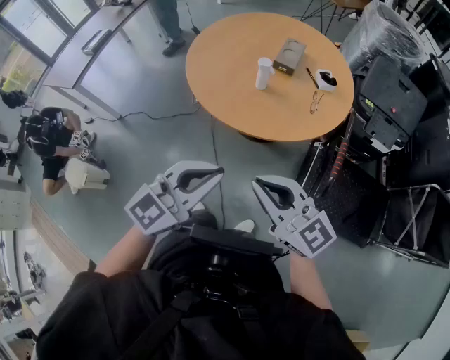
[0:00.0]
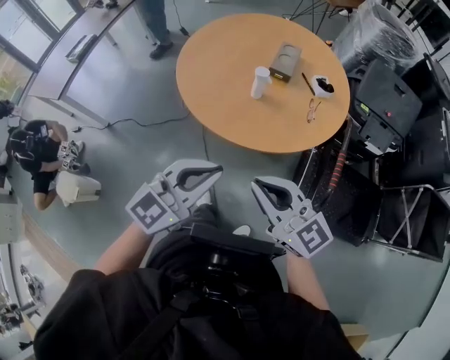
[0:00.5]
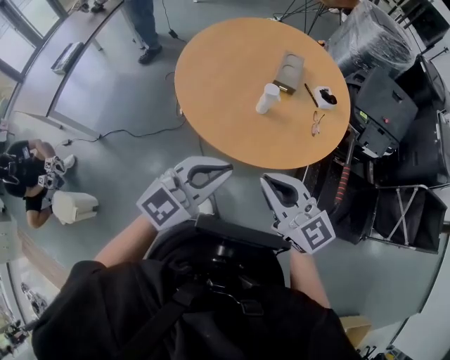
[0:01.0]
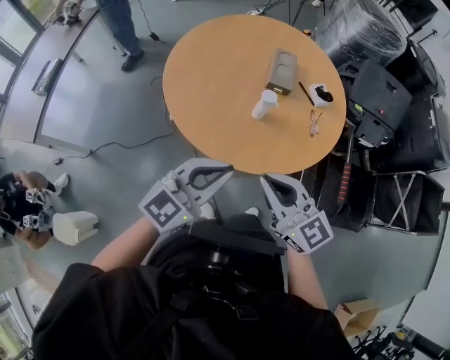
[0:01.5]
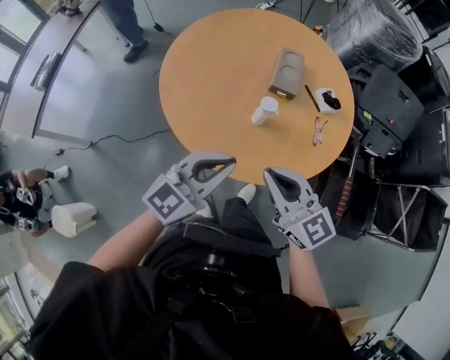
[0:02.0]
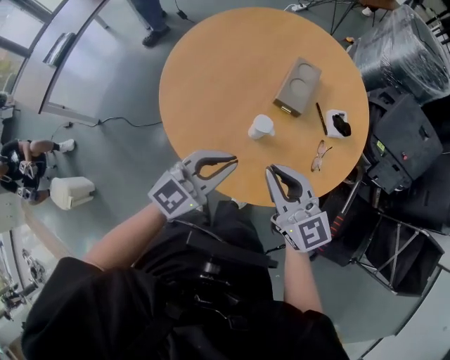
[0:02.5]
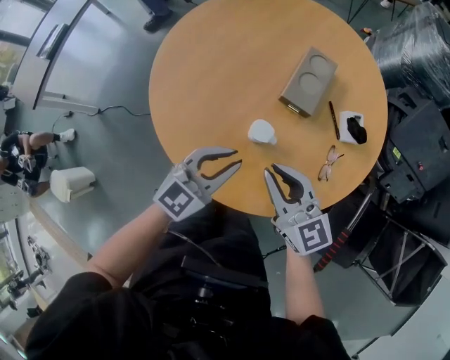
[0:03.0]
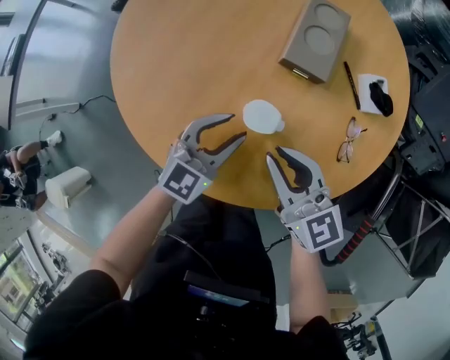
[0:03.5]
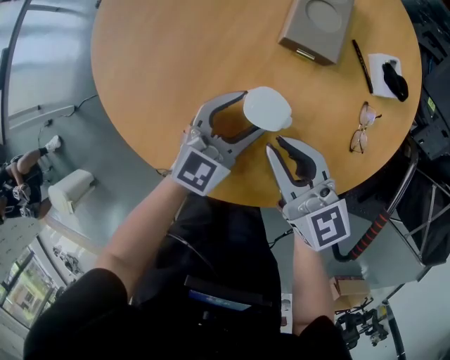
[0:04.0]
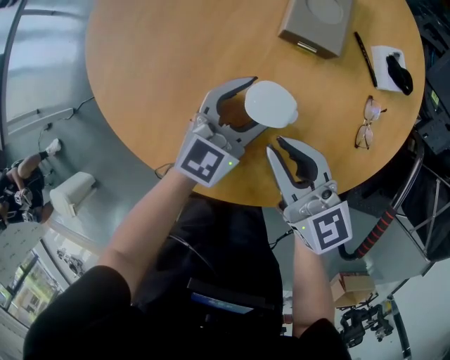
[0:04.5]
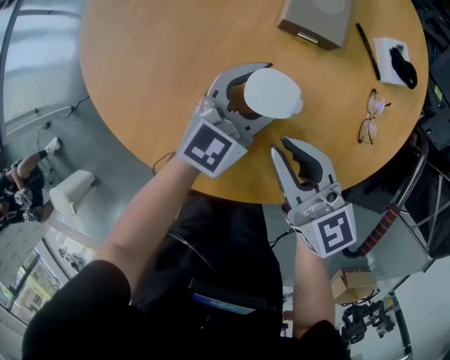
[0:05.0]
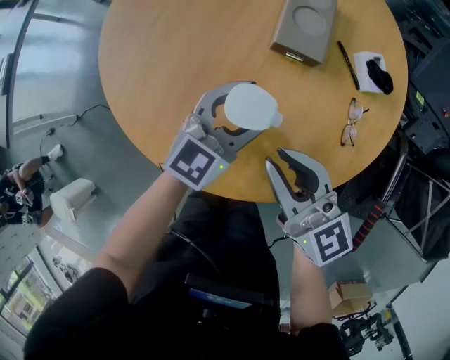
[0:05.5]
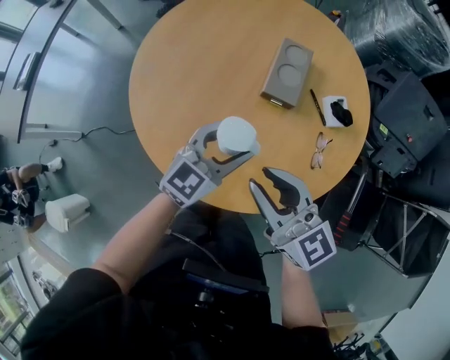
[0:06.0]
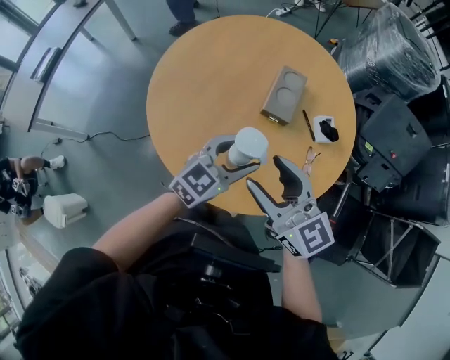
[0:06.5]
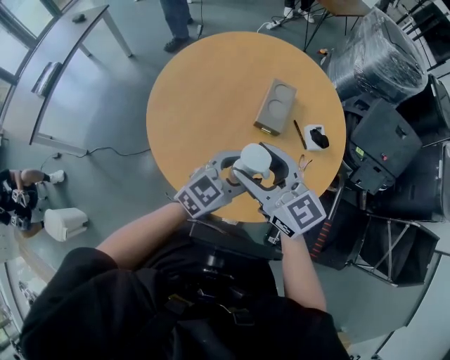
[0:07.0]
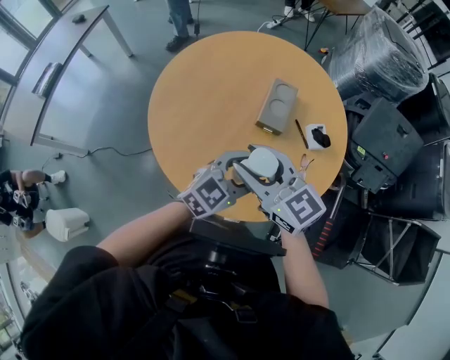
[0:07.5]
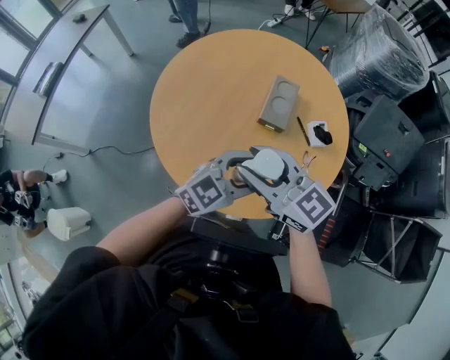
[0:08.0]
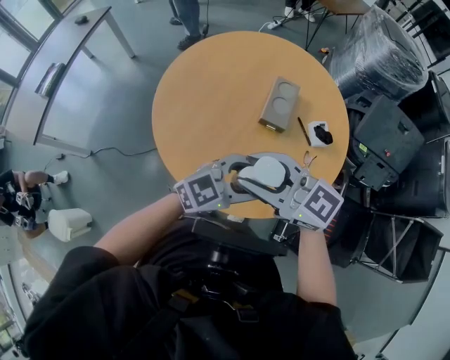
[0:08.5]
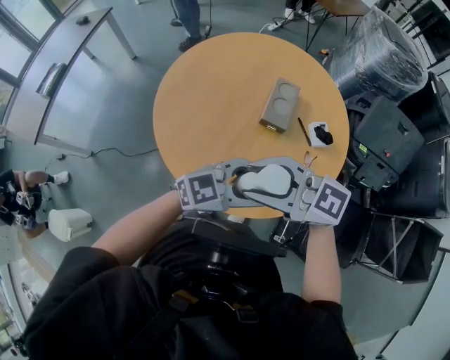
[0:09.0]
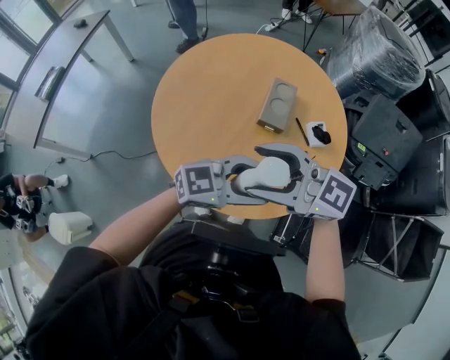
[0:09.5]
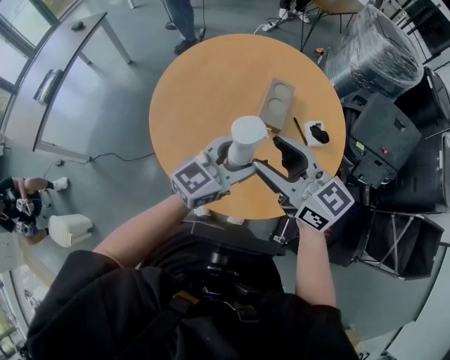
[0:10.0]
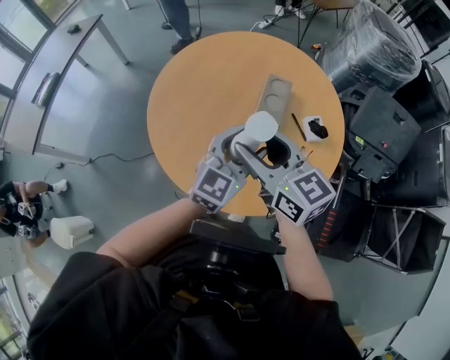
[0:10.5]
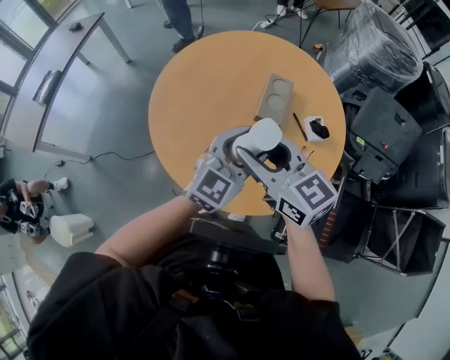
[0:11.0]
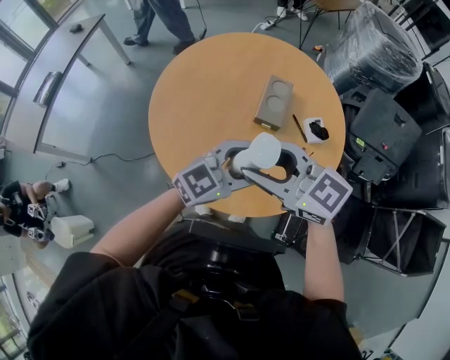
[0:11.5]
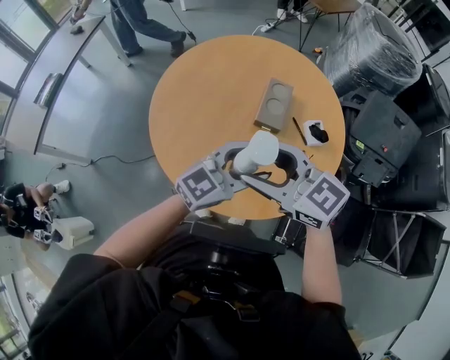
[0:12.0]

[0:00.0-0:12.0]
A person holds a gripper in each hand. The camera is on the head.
0:00.0 to 0:02.0: Both grippers are carried forward, approximately 40 cm.
0:02.0 to 0:04.0: Both grippers move downward and forward, about 50 cm. The left gripper opens.
0:04.0 to 0:06.0: The grippers both shift upward by approximately 25 cm.
0:06.0 to 0:08.0: The left gripper moves upward and backward, about 15 cm, while the right gripper travels upward and to the left by about 15 cm, and opens, then closes again.
0:08.0 to 0:10.0: The left gripper is displaced upward by about 5 cm, while the right gripper moves roughly 5 cm, and opens.

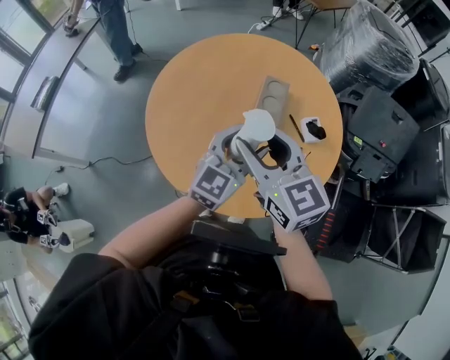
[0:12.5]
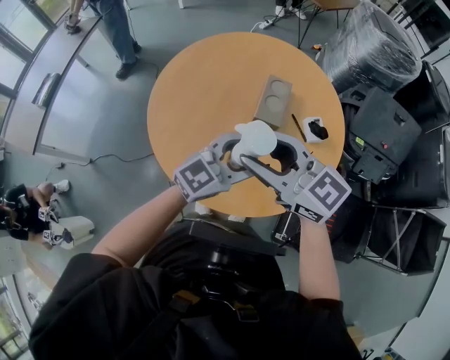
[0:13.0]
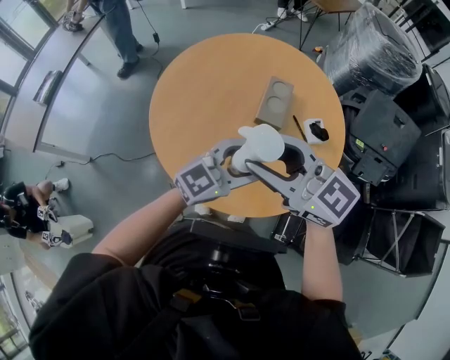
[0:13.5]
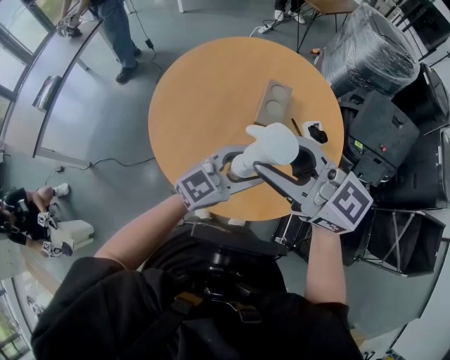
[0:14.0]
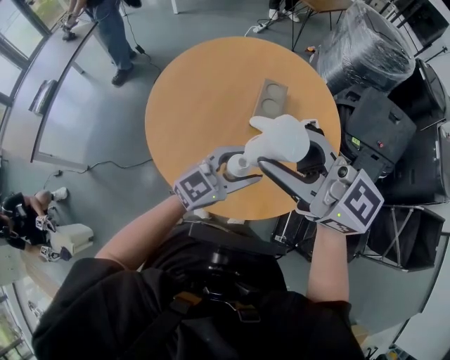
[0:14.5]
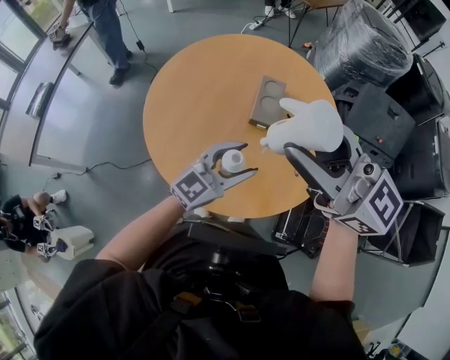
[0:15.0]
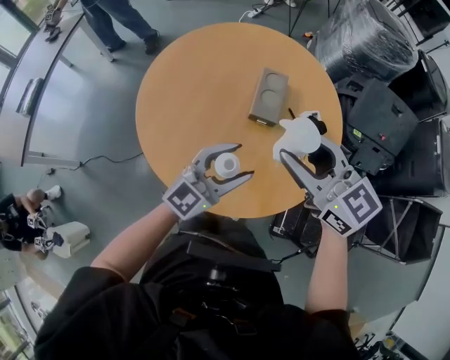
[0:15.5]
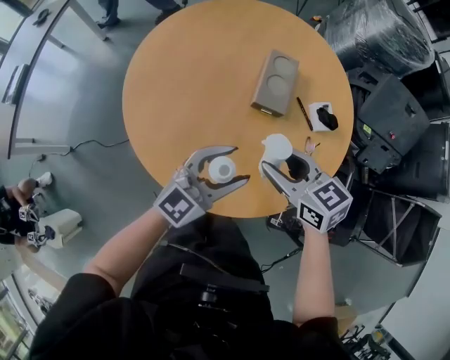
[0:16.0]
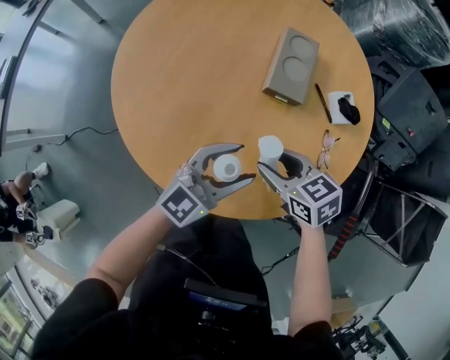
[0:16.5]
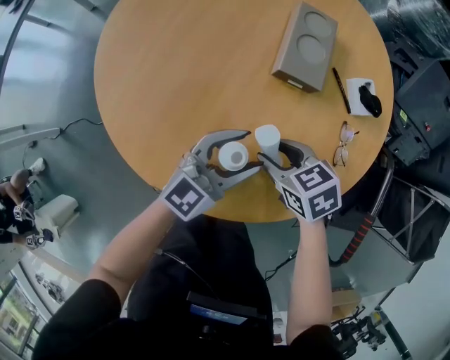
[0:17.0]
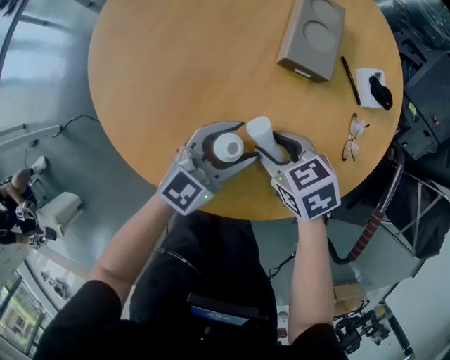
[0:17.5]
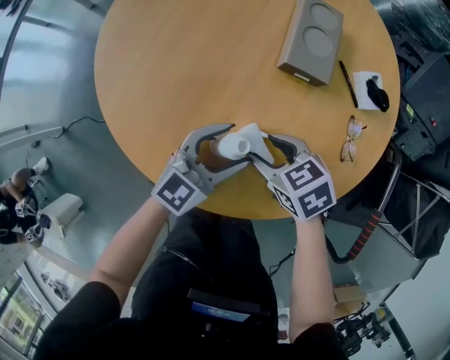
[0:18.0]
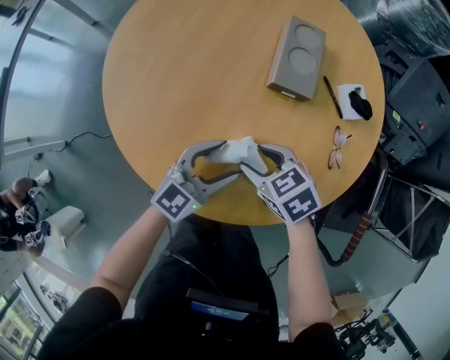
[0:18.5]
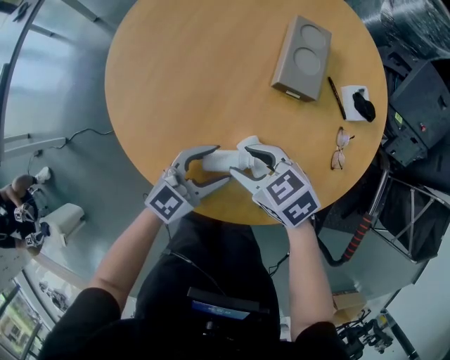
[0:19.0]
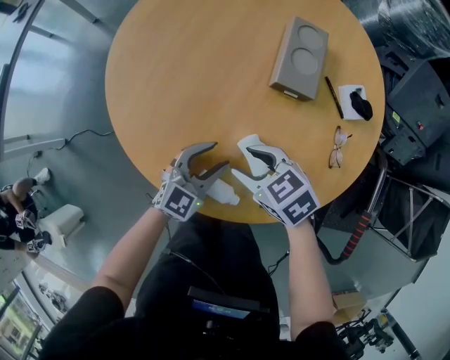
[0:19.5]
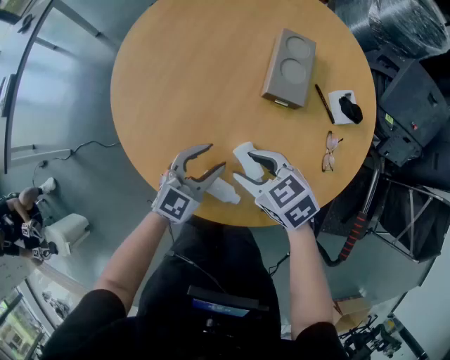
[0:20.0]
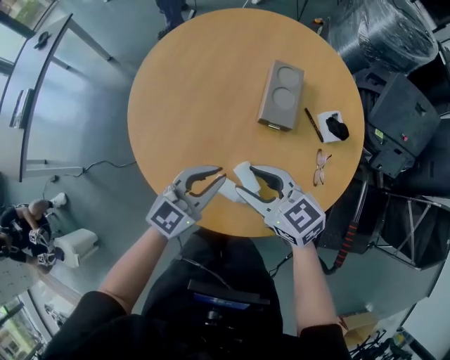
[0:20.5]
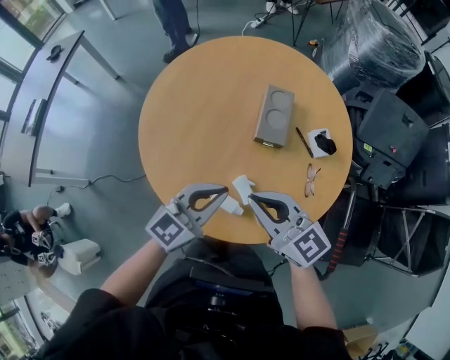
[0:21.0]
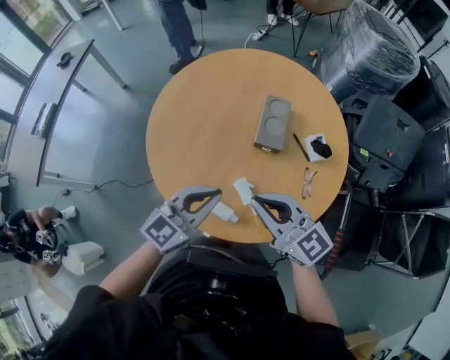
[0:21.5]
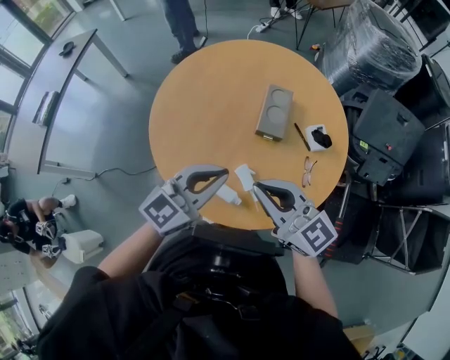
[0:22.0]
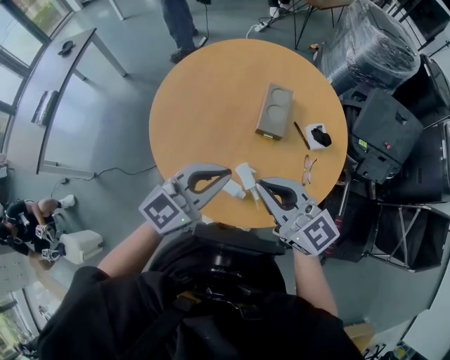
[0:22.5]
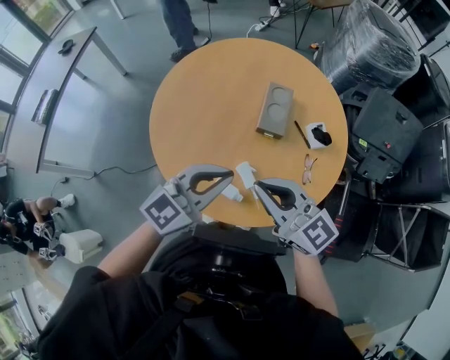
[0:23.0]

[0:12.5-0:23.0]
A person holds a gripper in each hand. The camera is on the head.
0:12.5 to 0:14.5: The left gripper ends up about 5 cm from where it was, and swivels approximately 20 degrees. Meanwhile the right gripper shifts about 10 cm upward, and rotates roughly 30 degrees.
0:14.5 to 0:16.5: The right gripper is displaced downward by roughly 50 cm, and tips its fingers downward by some 50 degrees. The left gripper travels downward by about 25 cm.
0:16.5 to 0:19.0: The left gripper goes approximately 15 cm downward and to the left; the right gripper goes roughly 10 cm to the left and downward.
0:19.0 to 0:21.0: The grippers both shift upward by about 30 cm. The right gripper tips its fingers upward by roughly 40 degrees, and closes; the left gripper closes.
0:21.0 to 0:23.0: The two grippers go roughly 10 cm upward and backward.

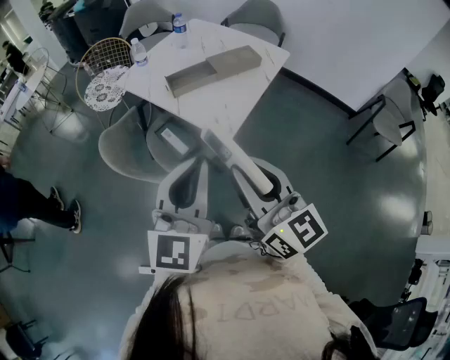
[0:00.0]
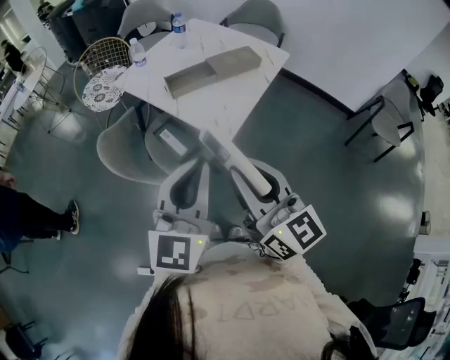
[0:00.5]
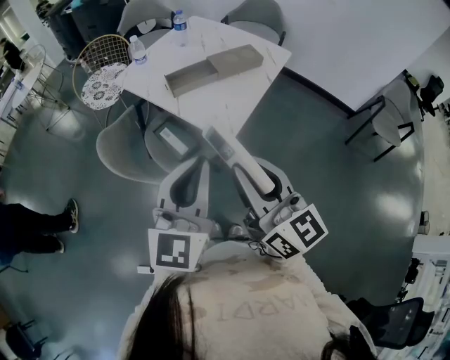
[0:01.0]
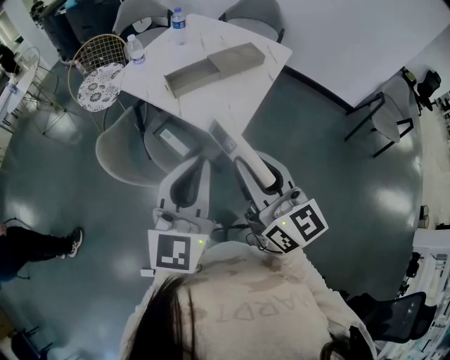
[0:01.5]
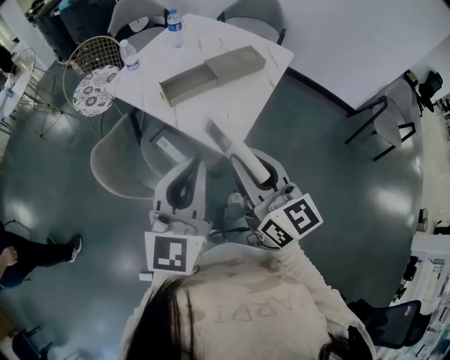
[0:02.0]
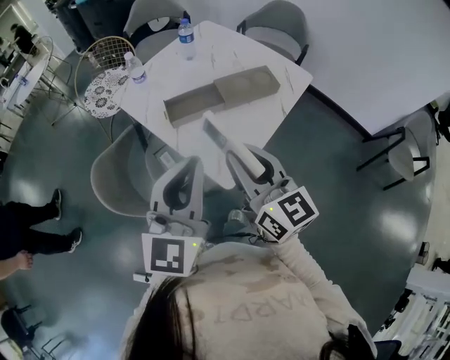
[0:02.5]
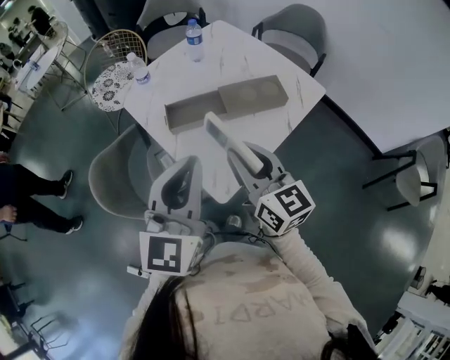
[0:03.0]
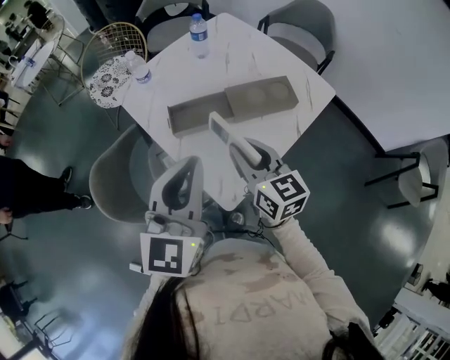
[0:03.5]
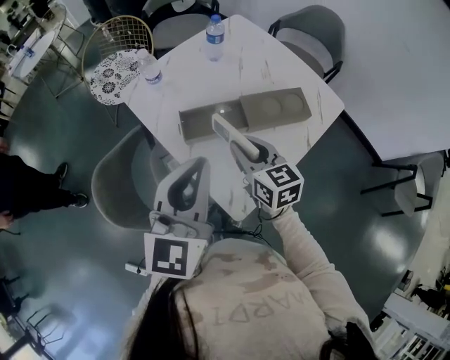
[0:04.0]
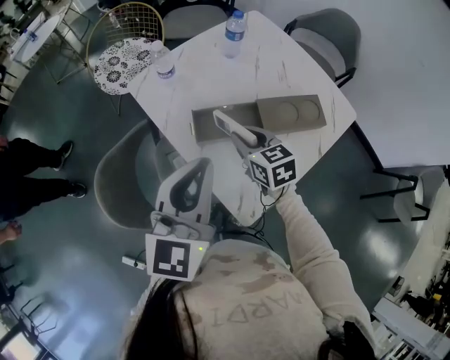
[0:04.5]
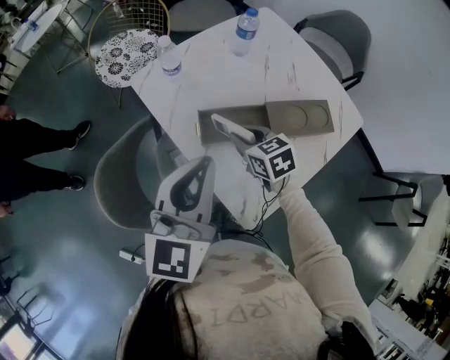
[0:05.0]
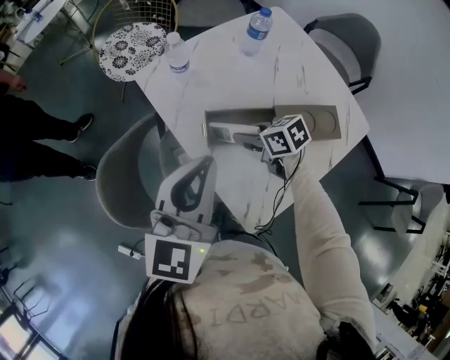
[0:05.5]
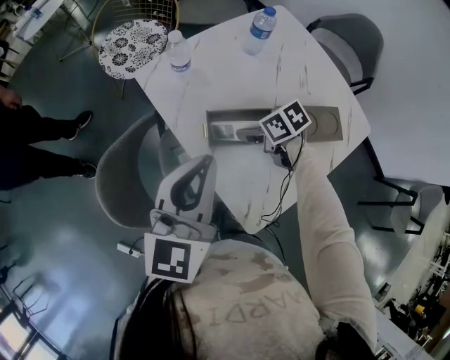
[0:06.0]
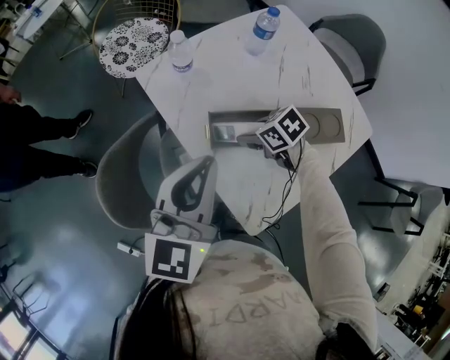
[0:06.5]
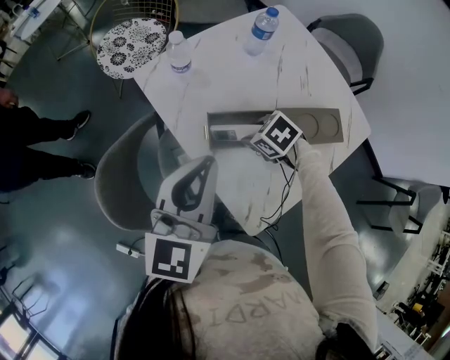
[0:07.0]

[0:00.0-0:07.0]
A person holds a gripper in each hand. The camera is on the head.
0:00.0 to 0:02.0: The grippers both shift forward by some 10 cm.
0:02.0 to 0:03.5: Both grippers move forward, approximately 25 cm. The right gripper changes its angle by approximately 20 degrees.
0:03.5 to 0:05.0: The left gripper goes roughly 15 cm forward and to the left. Meanwhile the right gripper moves forward, downward and to the left, roughly 20 cm, and changes its angle by some 30 degrees.
0:05.0 to 0:07.0: The right gripper moves downward, some 5 cm, turns by some 40 degrees, and opens its fingers.
